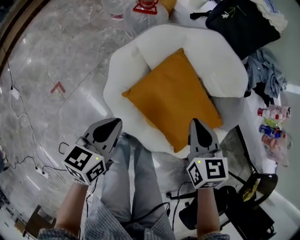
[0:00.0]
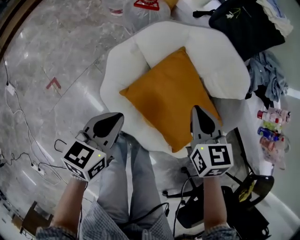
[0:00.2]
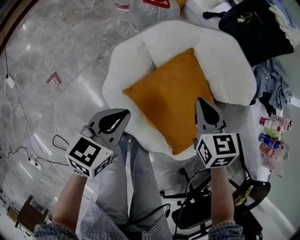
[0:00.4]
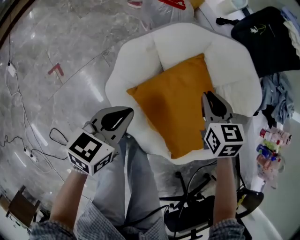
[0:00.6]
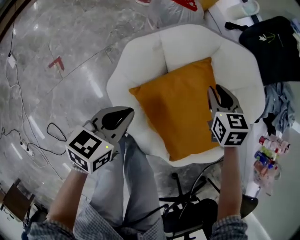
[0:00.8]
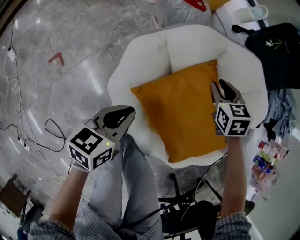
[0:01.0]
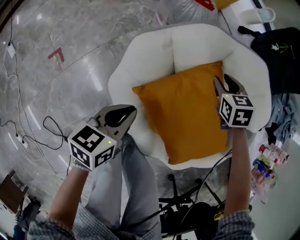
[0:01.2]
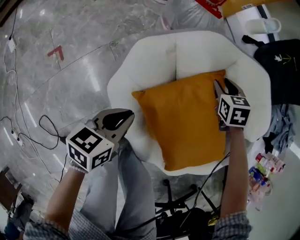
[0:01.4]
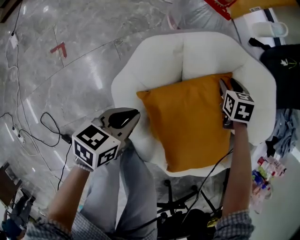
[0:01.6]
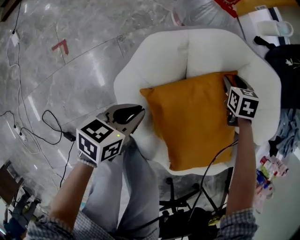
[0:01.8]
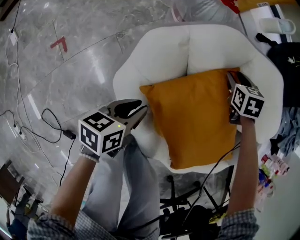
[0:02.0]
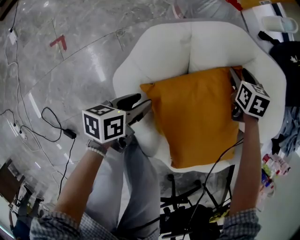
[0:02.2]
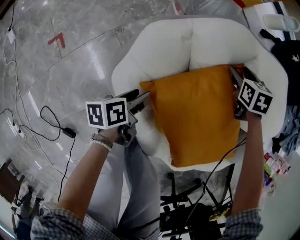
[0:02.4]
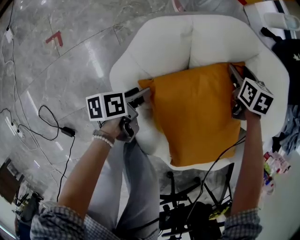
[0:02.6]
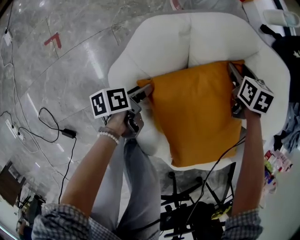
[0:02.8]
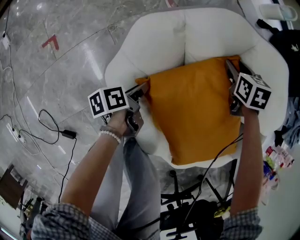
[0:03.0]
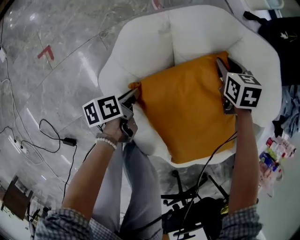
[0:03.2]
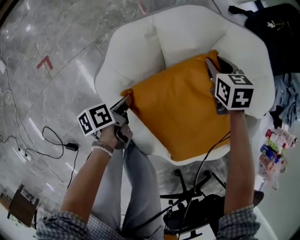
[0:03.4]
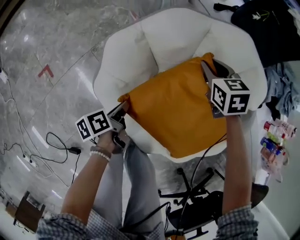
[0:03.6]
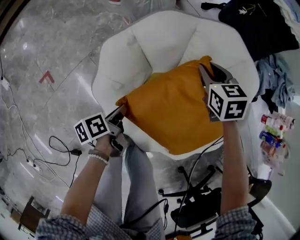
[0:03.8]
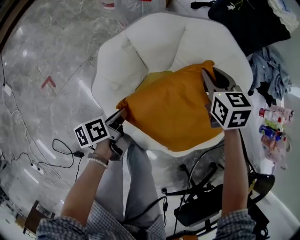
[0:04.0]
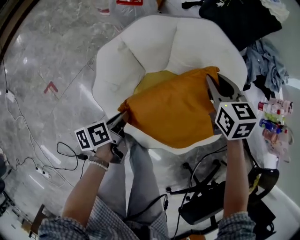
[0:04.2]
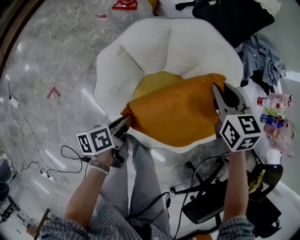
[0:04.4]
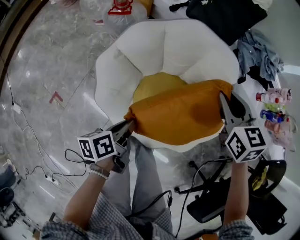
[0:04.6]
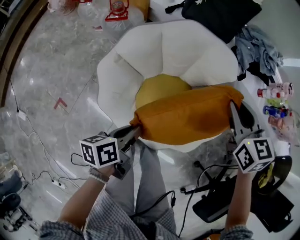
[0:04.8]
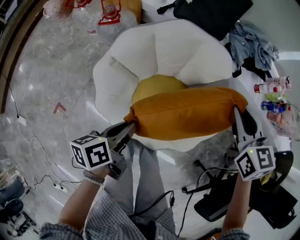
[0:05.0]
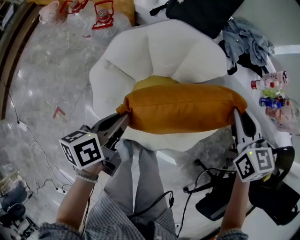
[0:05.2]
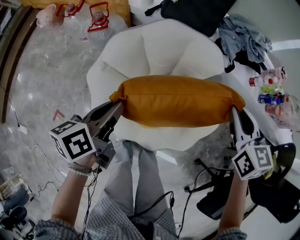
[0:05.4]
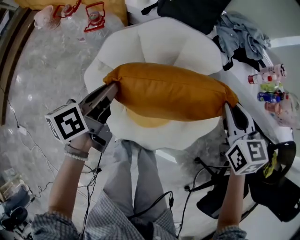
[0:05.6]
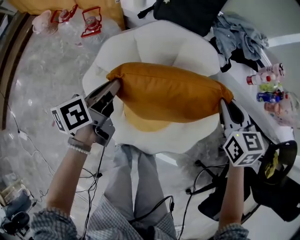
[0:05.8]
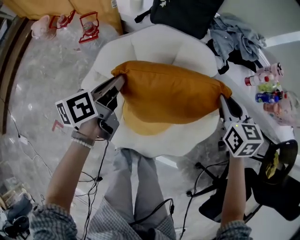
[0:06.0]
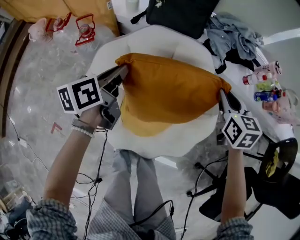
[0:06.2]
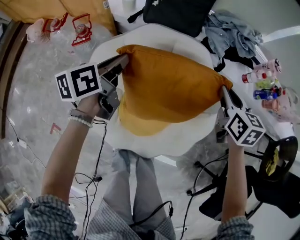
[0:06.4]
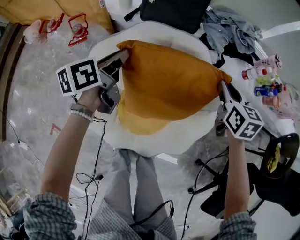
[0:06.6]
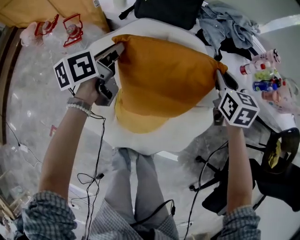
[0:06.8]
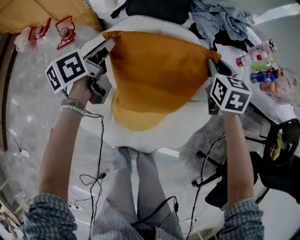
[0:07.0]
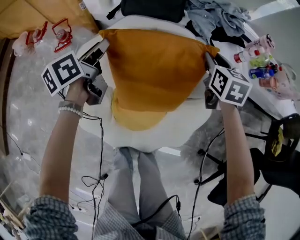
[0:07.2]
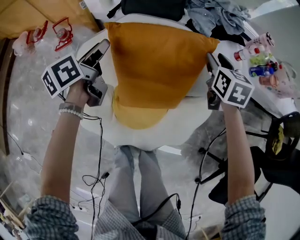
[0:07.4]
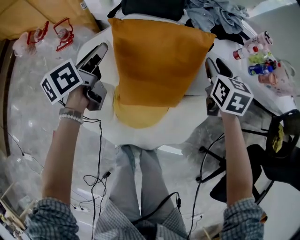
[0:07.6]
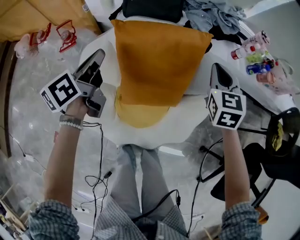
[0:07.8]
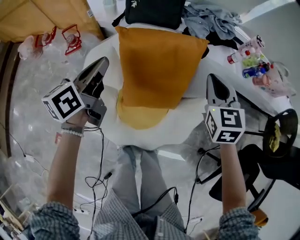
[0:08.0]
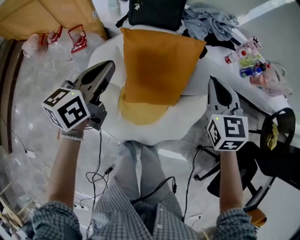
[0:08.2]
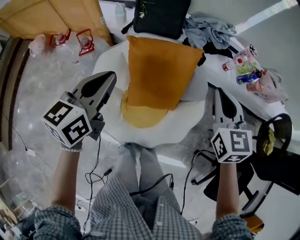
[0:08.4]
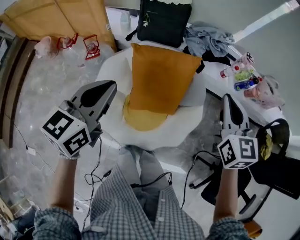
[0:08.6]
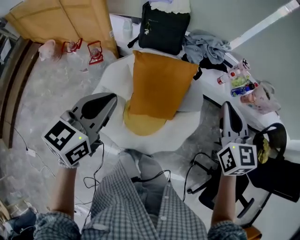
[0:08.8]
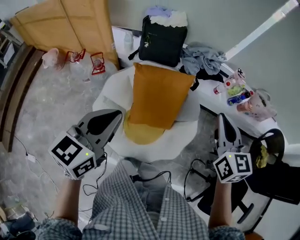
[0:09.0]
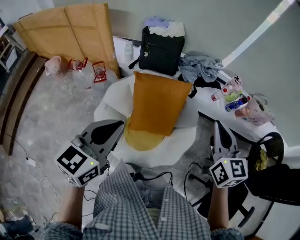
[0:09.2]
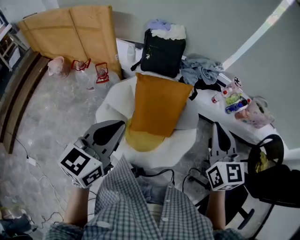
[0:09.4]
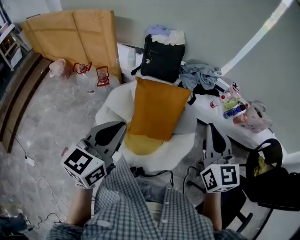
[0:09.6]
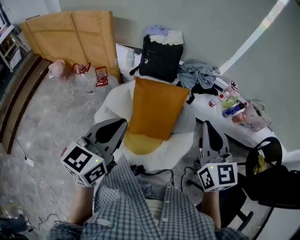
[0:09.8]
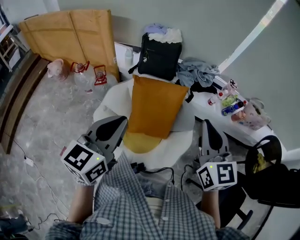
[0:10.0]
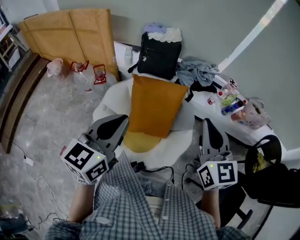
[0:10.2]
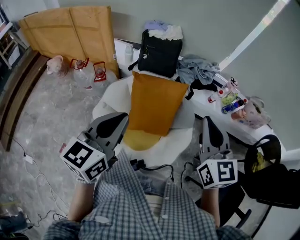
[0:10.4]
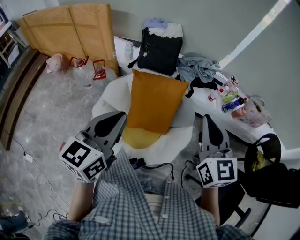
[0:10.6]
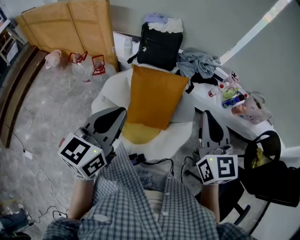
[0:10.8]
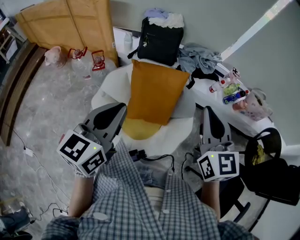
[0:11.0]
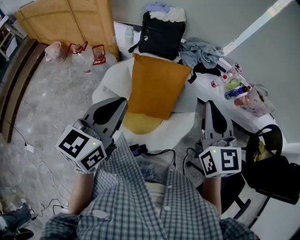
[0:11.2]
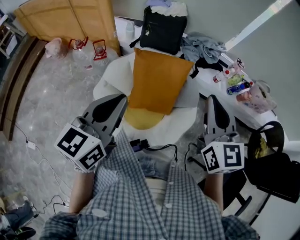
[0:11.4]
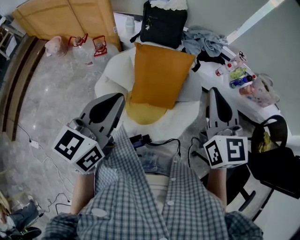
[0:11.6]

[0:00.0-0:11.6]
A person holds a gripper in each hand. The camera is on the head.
0:00.0 to 0:01.4: The right gripper is displaced forward and downward by about 35 cm, turns by about 30 degrees, and opens its fingers; the left gripper heads downward, covering some 15 cm.
0:01.4 to 0:02.8: The left gripper moves downward, about 20 cm, rolls counterclockwise, seen from behind, by some 50 degrees, and opens up.
0:02.8 to 0:04.4: The left gripper goes roughly 25 cm upward, swivels approximately 30 degrees, and closes, while the right gripper goes some 35 cm upward, backward and to the right, and closes up.
0:04.4 to 0:05.8: The right gripper moves to the right, roughly 15 cm, while the left gripper moves forward and upward, about 20 cm, and changes its angle by approximately 20 degrees.
0:05.8 to 0:07.2: The right gripper moves forward and downward, approximately 15 cm; the left gripper heads forward, covering approximately 15 cm, and opens.
0:07.2 to 0:08.8: The grippers both shift upward and backward by approximately 40 cm. The right gripper swivels about 20 degrees, and closes up, while the left gripper rotates around the line of its fingers by some 40 degrees, clockwise from behind, and closes its fingers.
0:08.8 to 0:10.2: The right gripper goes roughly 10 cm upward and backward. The left gripper heads upward, to the right and backward, covering roughly 10 cm.
0:10.2 to 0:11.6: The grippers make only small movements.

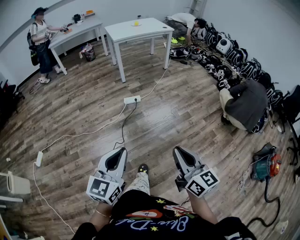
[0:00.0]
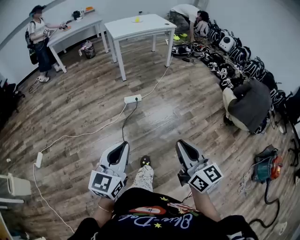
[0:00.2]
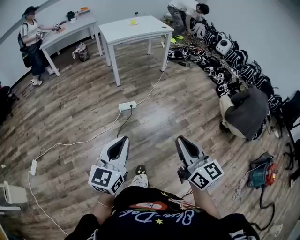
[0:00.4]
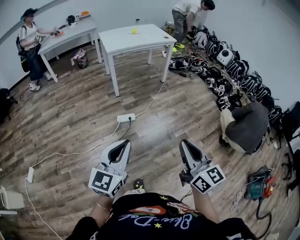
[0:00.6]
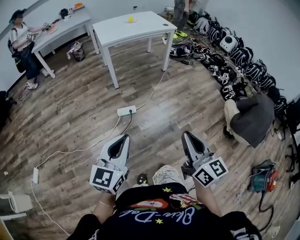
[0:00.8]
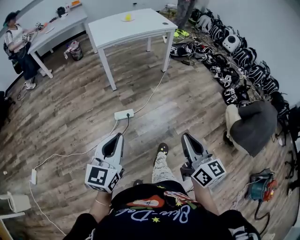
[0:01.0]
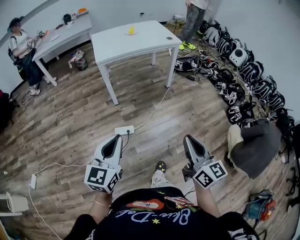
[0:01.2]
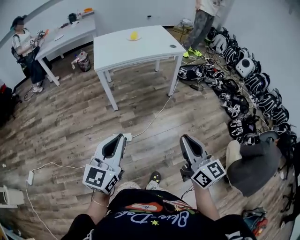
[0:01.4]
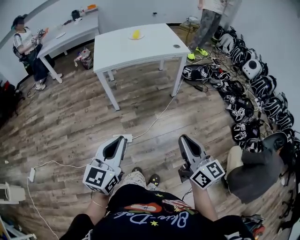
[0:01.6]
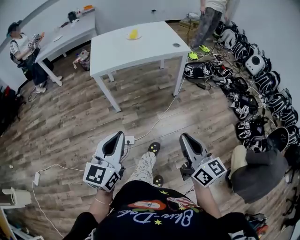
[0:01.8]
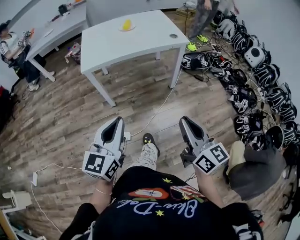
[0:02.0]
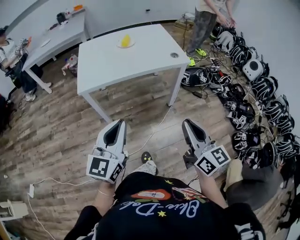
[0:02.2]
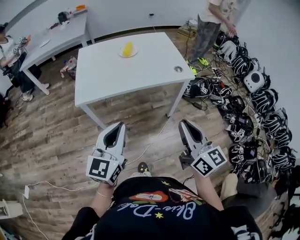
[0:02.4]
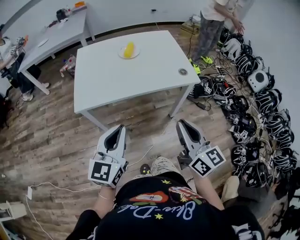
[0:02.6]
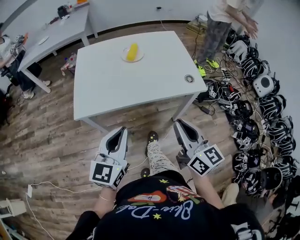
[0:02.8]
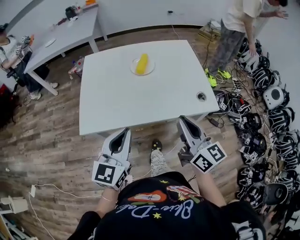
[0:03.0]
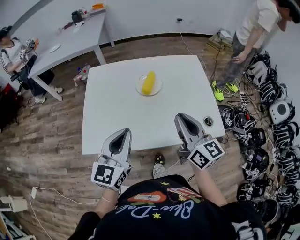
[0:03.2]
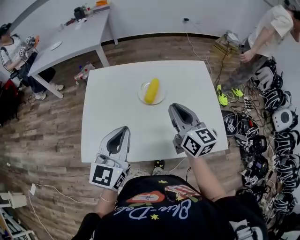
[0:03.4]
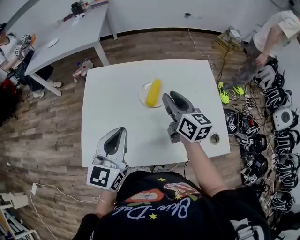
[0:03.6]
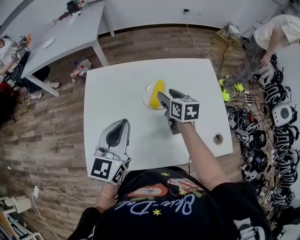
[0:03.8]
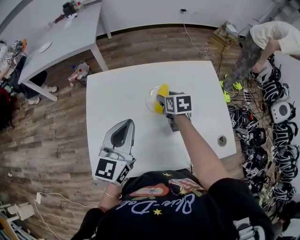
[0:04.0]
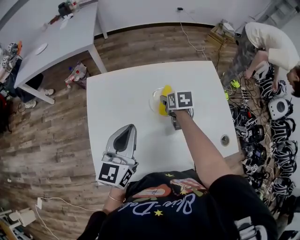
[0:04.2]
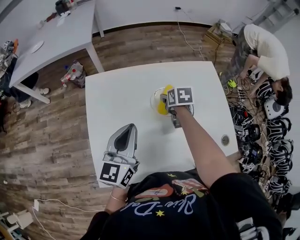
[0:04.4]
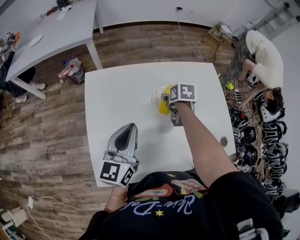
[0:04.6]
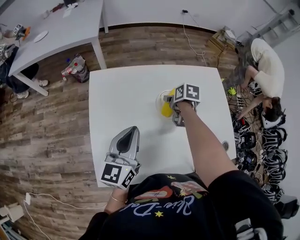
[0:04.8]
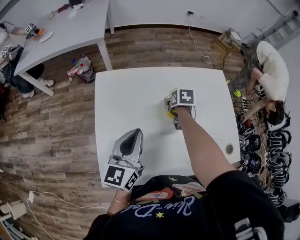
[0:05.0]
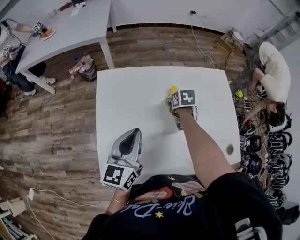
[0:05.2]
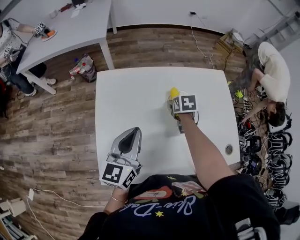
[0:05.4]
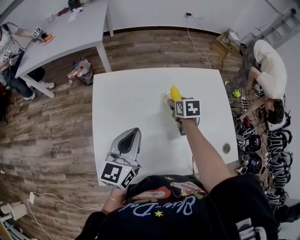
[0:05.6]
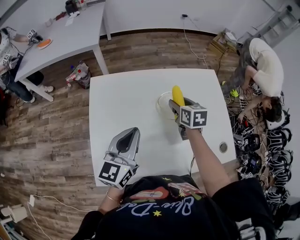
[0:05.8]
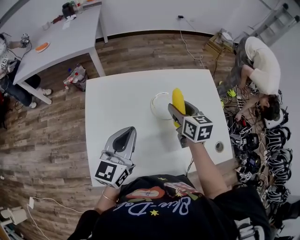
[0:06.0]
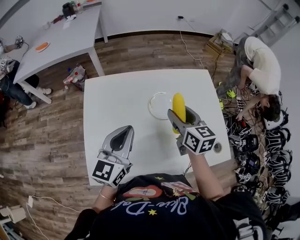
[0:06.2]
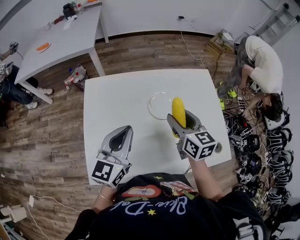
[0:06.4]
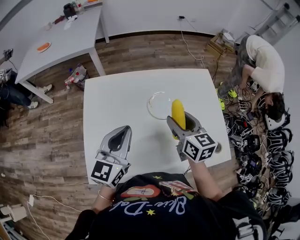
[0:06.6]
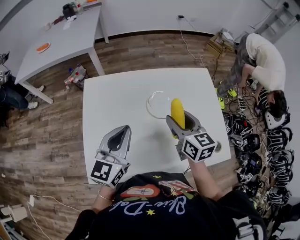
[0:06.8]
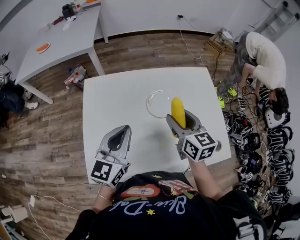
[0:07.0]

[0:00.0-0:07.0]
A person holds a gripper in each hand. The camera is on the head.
0:00.0 to 0:01.4: The two grippers travel together, forward, some 70 cm.
0:01.4 to 0:02.8: The two grippers travel together, forward, approximately 60 cm.
0:02.8 to 0:04.2: Both grippers are carried forward, some 50 cm. The right gripper tilts its fingers about 50 degrees downward, and opens.
0:04.2 to 0:05.6: The grippers stay close to where they were, moving slightly.
0:05.6 to 0:07.0: The right gripper heads upward and backward, covering approximately 20 cm, and points its fingers approximately 30 degrees further upward, while the left gripper goes some 5 cm to the right.

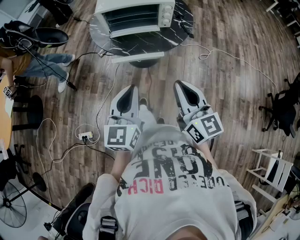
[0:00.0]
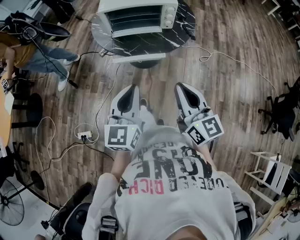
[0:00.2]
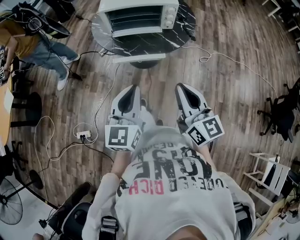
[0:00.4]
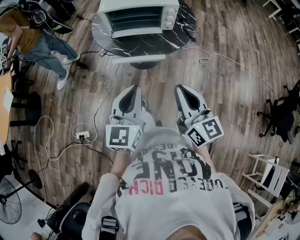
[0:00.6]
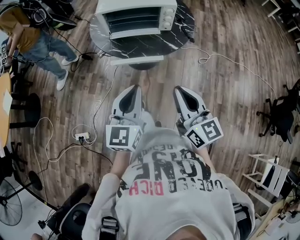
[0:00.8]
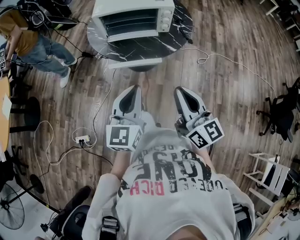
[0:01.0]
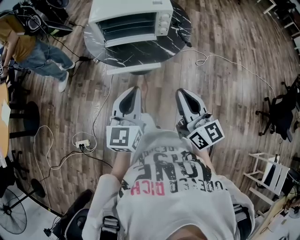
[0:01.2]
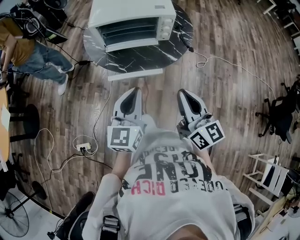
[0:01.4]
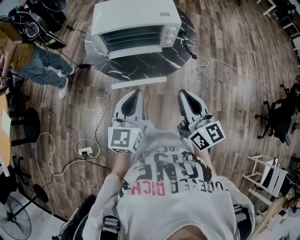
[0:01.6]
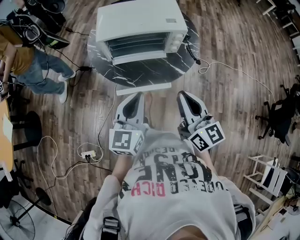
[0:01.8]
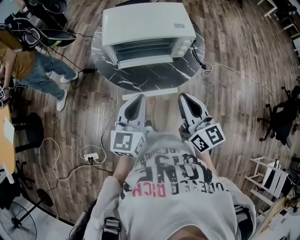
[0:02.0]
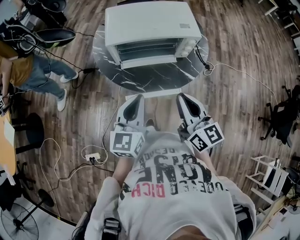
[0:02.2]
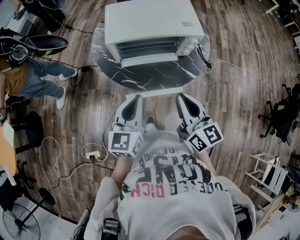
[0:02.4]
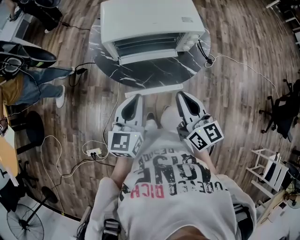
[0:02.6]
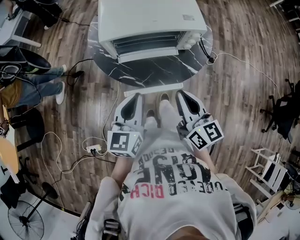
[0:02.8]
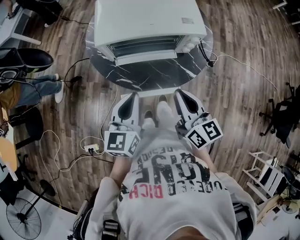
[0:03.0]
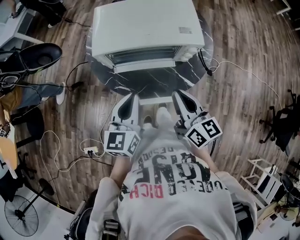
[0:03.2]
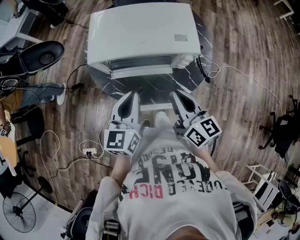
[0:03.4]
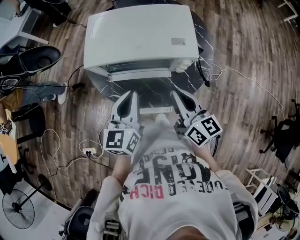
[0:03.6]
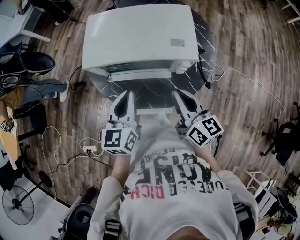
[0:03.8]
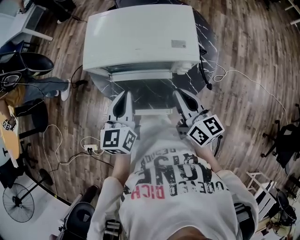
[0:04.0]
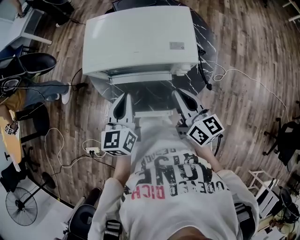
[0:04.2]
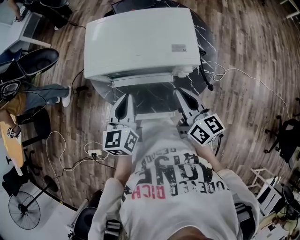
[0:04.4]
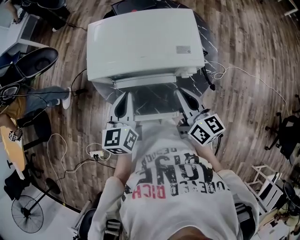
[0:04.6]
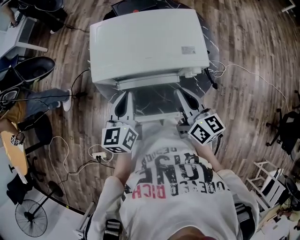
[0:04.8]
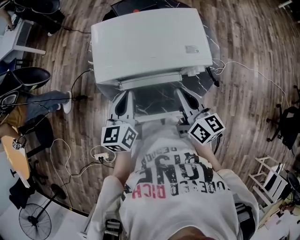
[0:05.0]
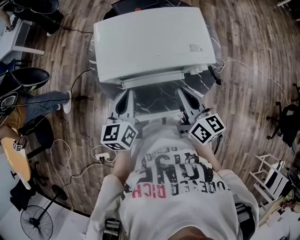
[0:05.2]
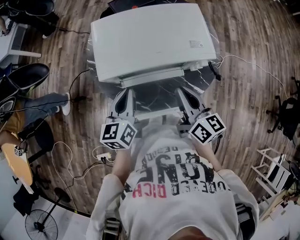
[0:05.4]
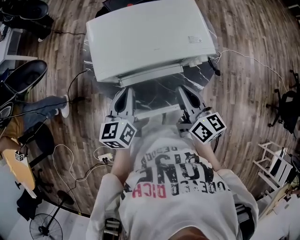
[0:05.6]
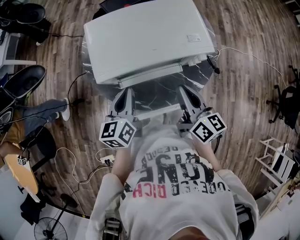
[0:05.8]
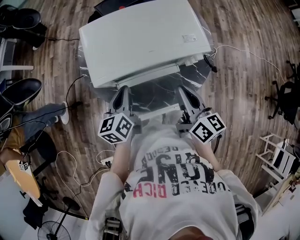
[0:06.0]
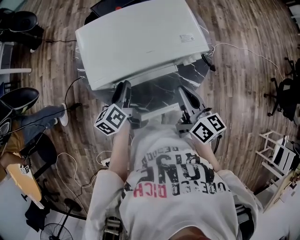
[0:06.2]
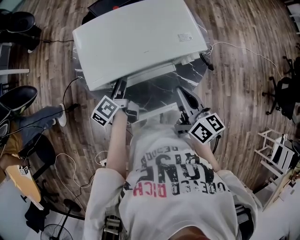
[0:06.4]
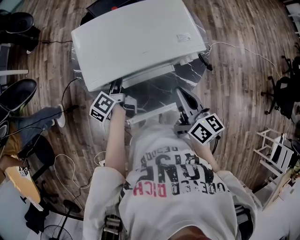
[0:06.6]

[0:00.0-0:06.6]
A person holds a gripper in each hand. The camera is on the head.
0:00.0 to 0:01.6: Both grippers move forward, about 15 cm.
0:01.6 to 0:03.2: Both grippers move forward, roughly 15 cm.
0:03.2 to 0:05.0: The two grippers go about 10 cm forward.
0:05.0 to 0:06.6: The left gripper moves downward and forward, about 15 cm, rolls counterclockwise, seen from behind, by roughly 40 degrees, and opens.
